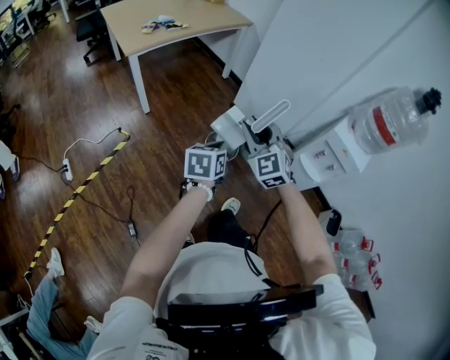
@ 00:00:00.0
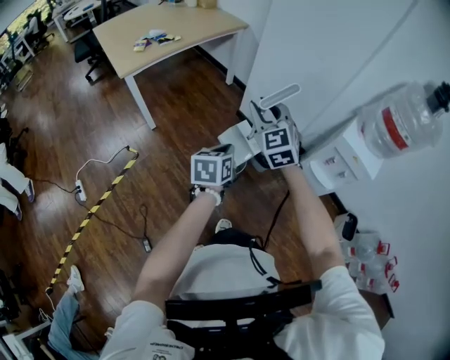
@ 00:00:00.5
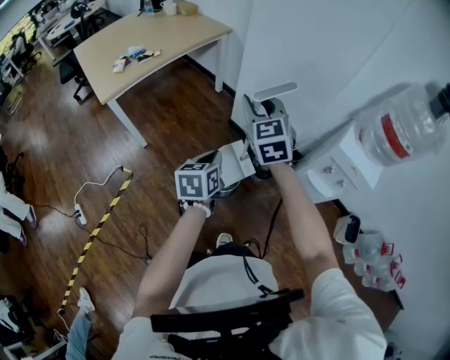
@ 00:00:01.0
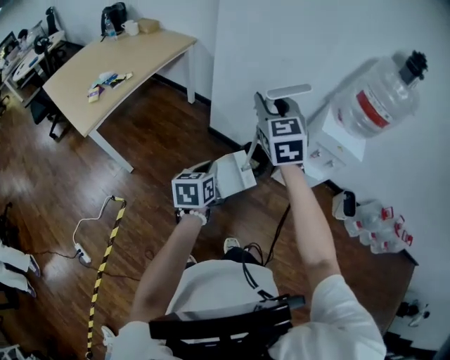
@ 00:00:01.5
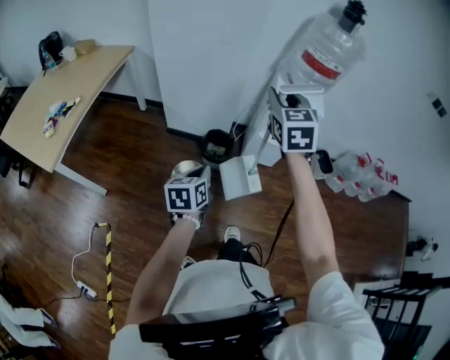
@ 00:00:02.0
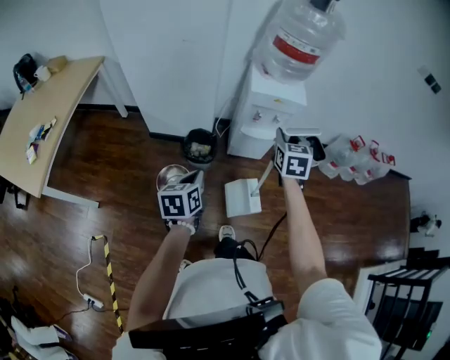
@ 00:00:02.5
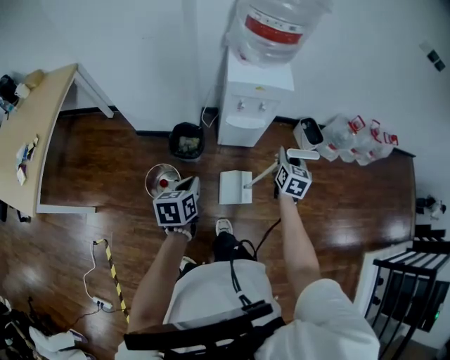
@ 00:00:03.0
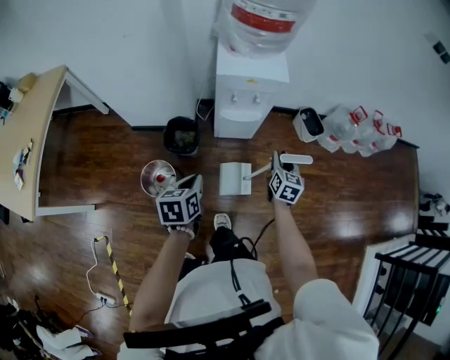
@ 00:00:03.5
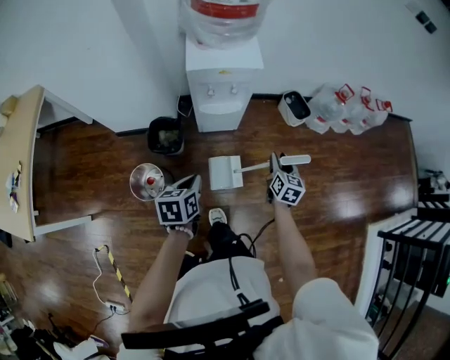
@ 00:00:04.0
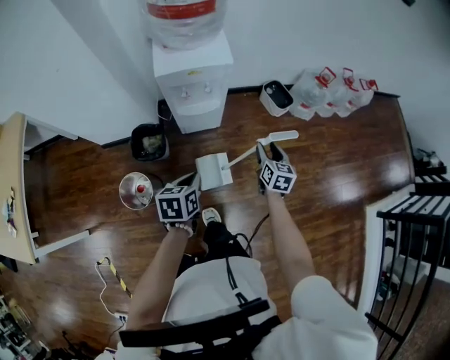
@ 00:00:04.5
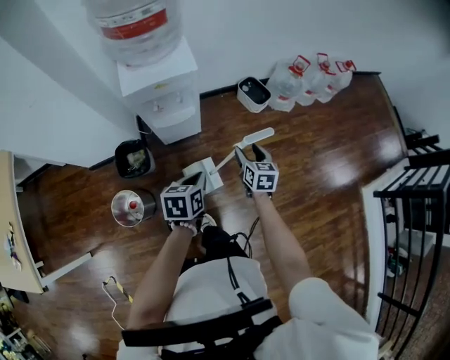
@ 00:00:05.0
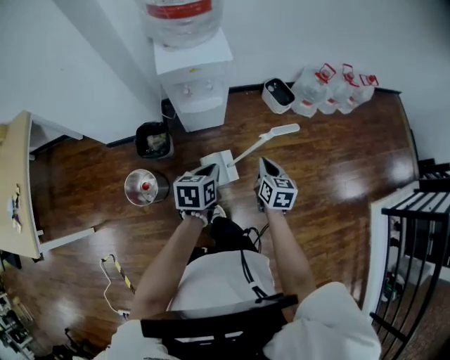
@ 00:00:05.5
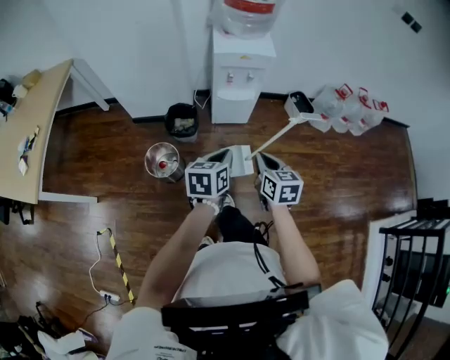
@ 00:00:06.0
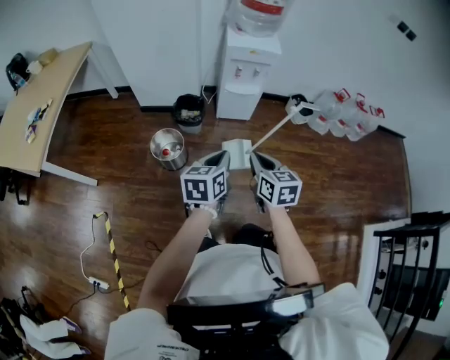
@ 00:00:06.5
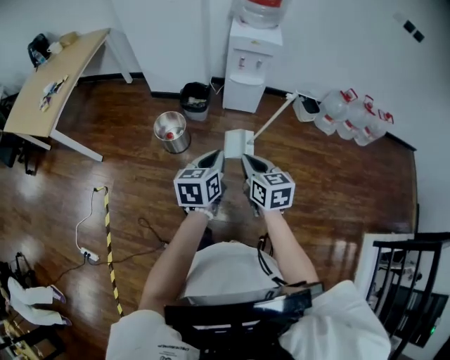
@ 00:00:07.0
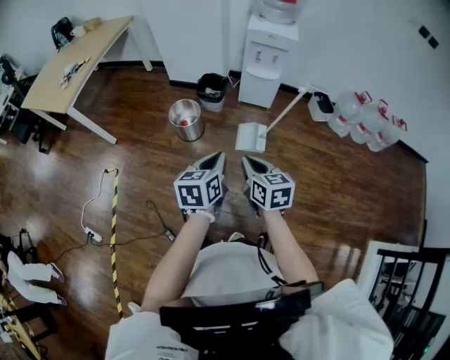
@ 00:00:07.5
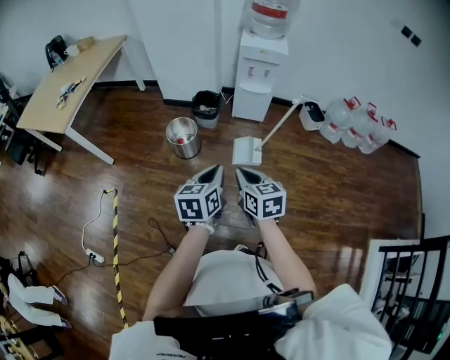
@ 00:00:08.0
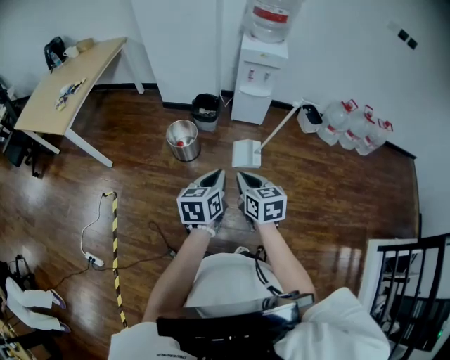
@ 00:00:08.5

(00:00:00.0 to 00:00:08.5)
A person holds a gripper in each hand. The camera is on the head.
00:00:00.0 - 00:00:02.0: The left gripper shifts by approximately 15 cm, and turns by approximately 30 degrees; the right gripper moves about 30 cm, and changes its angle by about 60 degrees.
00:00:02.0 - 00:00:04.0: The right gripper shifts about 60 cm to the right and downward, and twists roughly 40 degrees clockwise, seen from behind. The left gripper goes some 30 cm to the right, forward and downward, and changes its angle by some 20 degrees.
00:00:04.0 - 00:00:06.5: The left gripper shifts by about 25 cm, while the right gripper shifts by about 40 cm, rotates approximately 30 degrees, and closes up.
00:00:06.5 - 00:00:08.5: Both grippers move backward, approximately 20 cm.

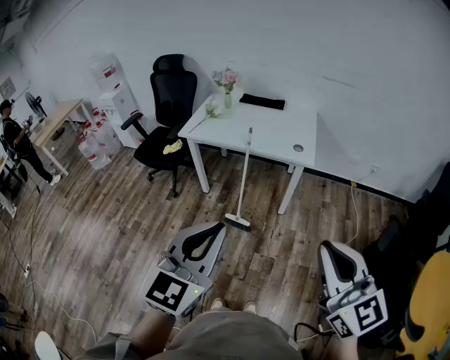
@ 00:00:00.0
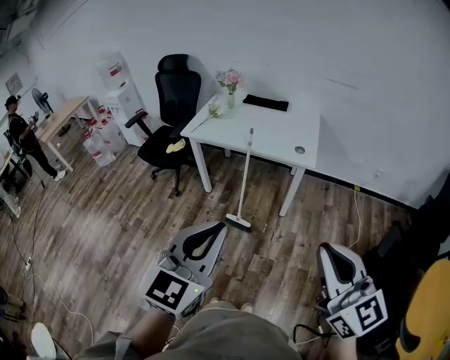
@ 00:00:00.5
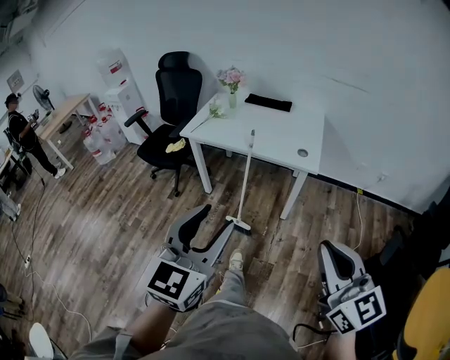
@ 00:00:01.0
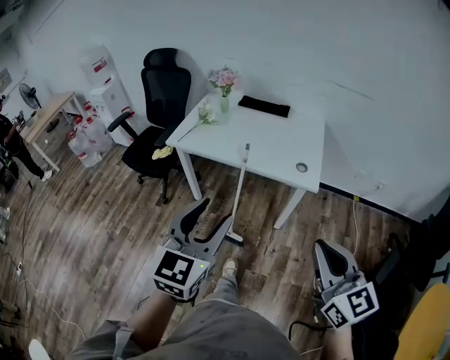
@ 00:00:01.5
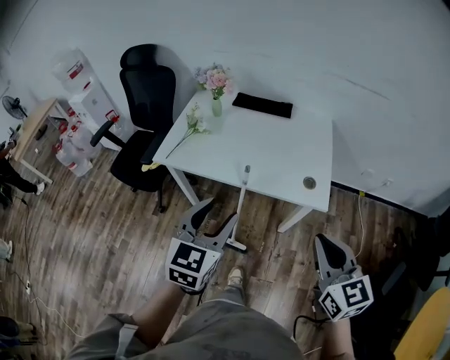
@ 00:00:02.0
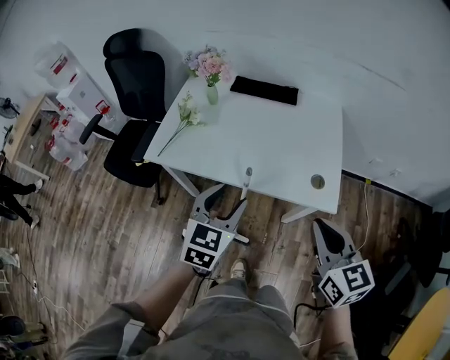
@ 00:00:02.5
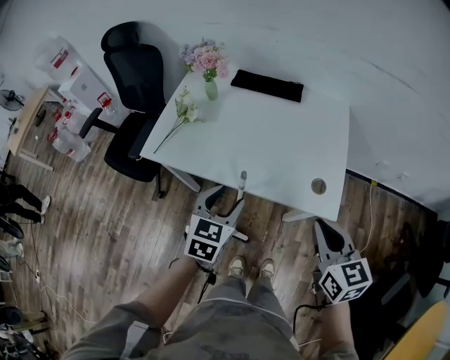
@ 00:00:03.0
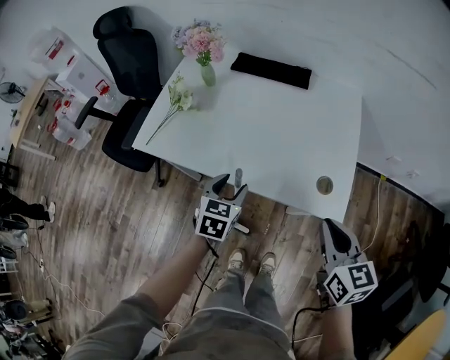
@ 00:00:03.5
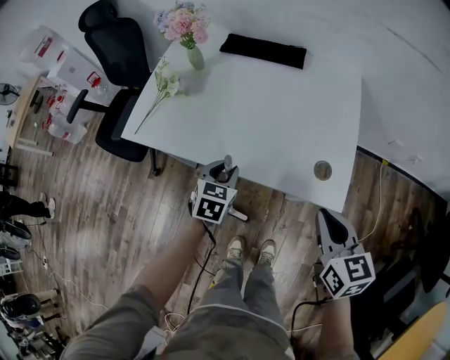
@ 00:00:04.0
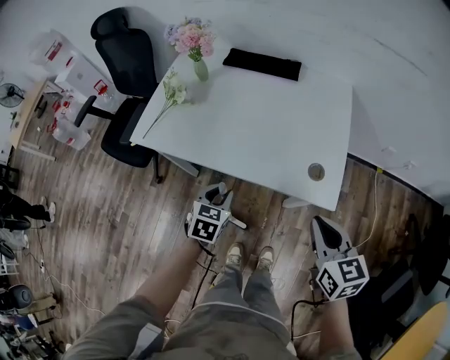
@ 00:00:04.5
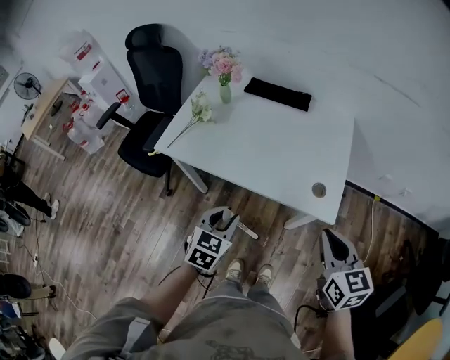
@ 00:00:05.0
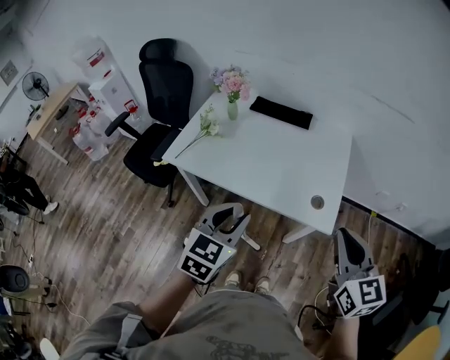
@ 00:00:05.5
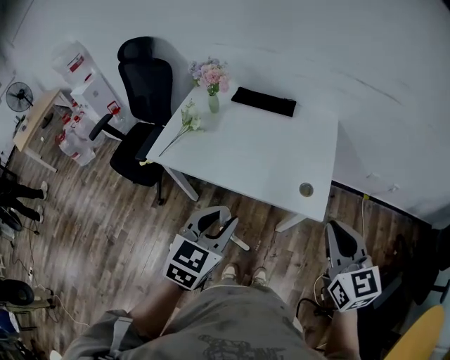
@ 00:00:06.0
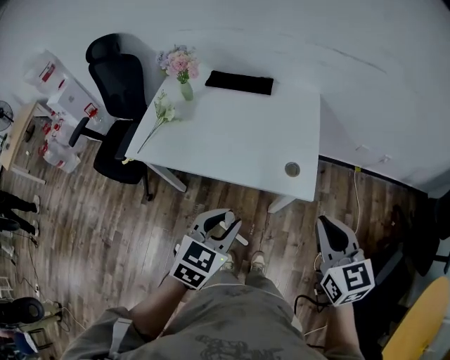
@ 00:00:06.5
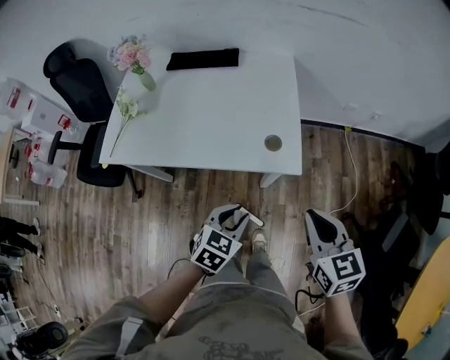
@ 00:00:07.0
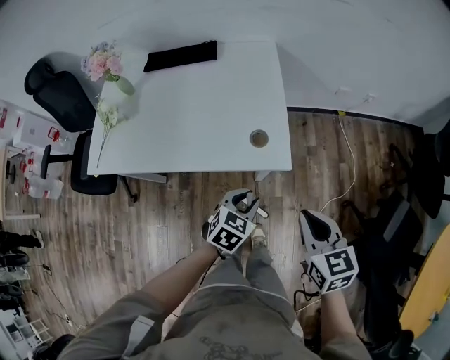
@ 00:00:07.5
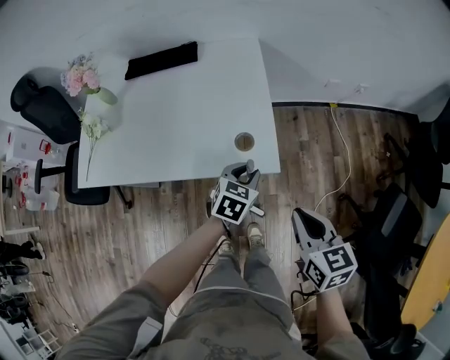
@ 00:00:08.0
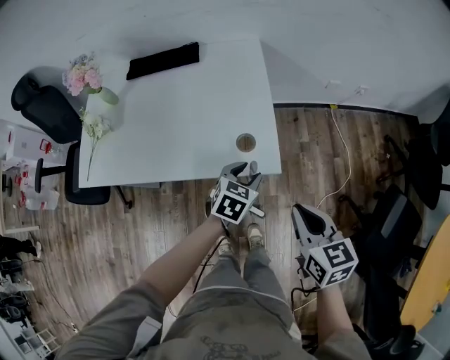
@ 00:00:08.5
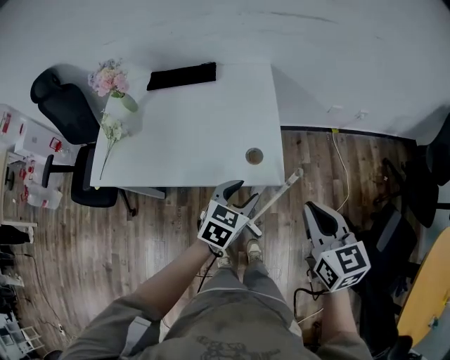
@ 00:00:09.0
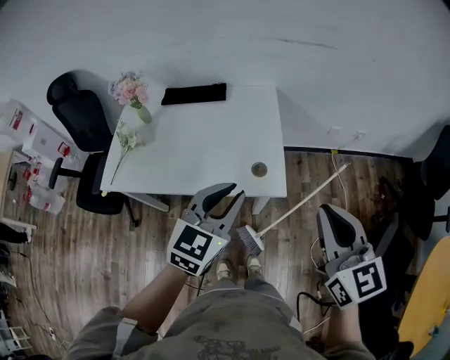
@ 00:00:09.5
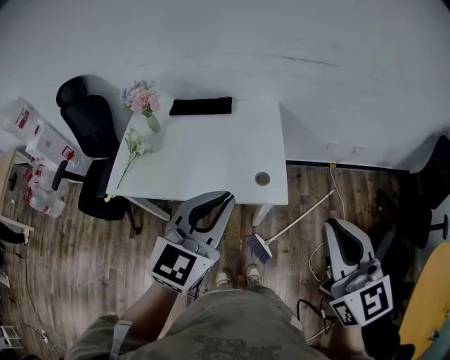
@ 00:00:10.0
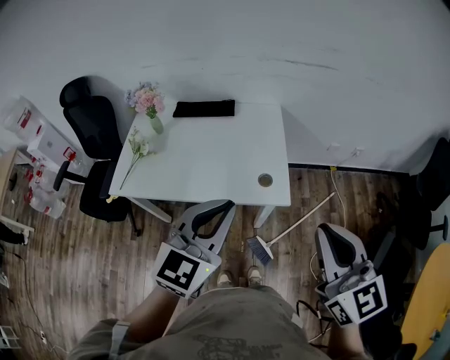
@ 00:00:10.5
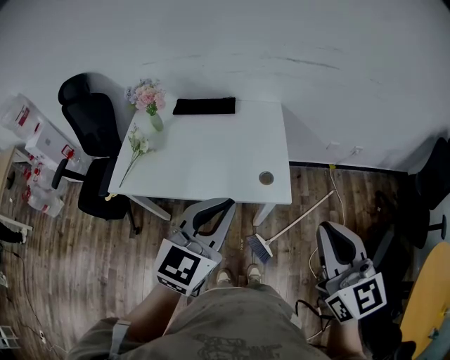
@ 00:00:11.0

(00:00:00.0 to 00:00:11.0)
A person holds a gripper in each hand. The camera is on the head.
00:00:00.0 - 00:00:02.0: Both grippers are carried forward, some 40 cm. The left gripper opens up.
00:00:02.0 - 00:00:03.5: The right gripper is displaced forward and downward by approximately 25 cm, while the left gripper travels downward and forward by some 30 cm, and rotates approximately 20 degrees.
00:00:03.5 - 00:00:05.5: The right gripper heads upward and backward, covering roughly 15 cm. Meanwhile the left gripper travels upward and backward by approximately 25 cm, and closes.
00:00:05.5 - 00:00:07.5: The left gripper is displaced downward and to the right by approximately 30 cm, and rotates some 40 degrees. The right gripper is displaced downward and to the right by about 20 cm, and swivels about 30 degrees.
00:00:07.5 - 00:00:09.0: The left gripper goes approximately 10 cm upward and forward, and opens. The right gripper heads upward, covering roughly 10 cm.
00:00:09.0 - 00:00:11.0: The left gripper shifts some 25 cm upward, swivels about 30 degrees, and closes up; the right gripper moves upward and backward, approximately 20 cm.

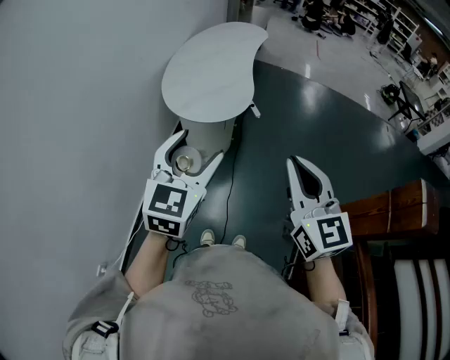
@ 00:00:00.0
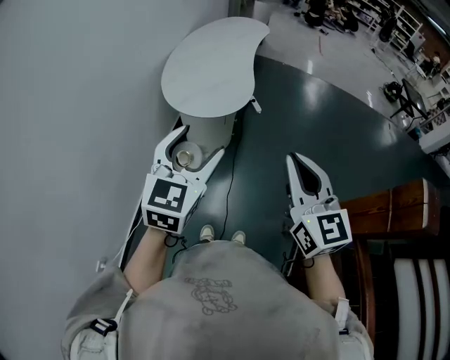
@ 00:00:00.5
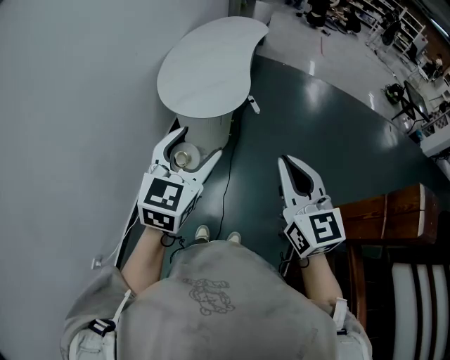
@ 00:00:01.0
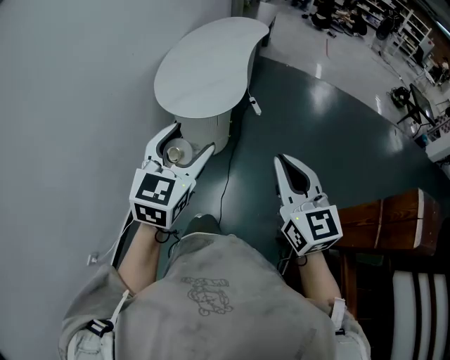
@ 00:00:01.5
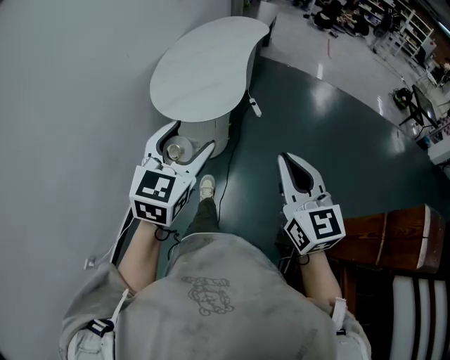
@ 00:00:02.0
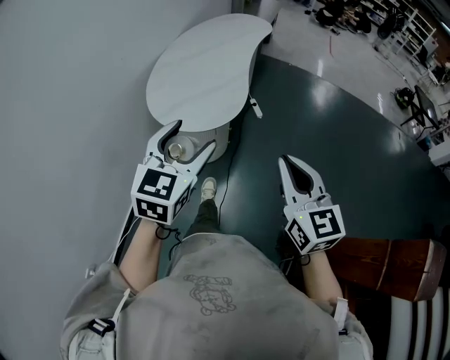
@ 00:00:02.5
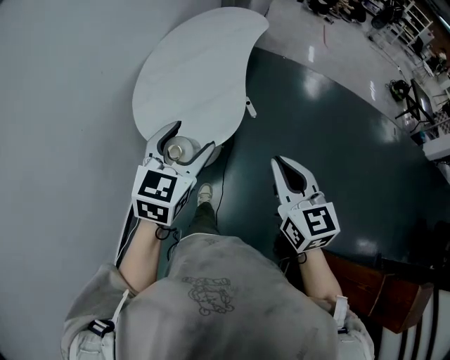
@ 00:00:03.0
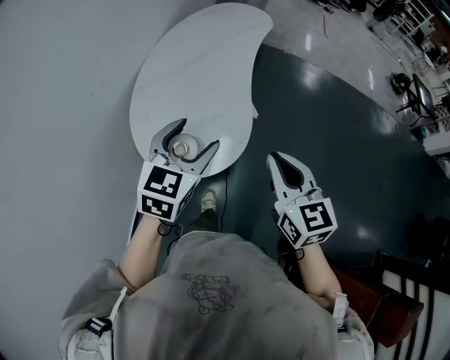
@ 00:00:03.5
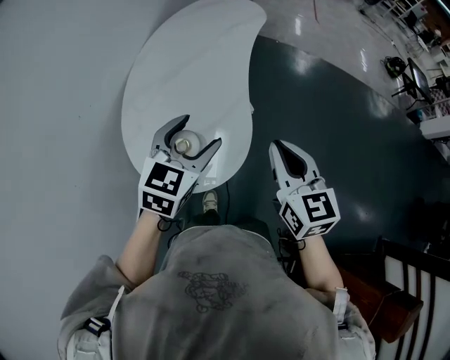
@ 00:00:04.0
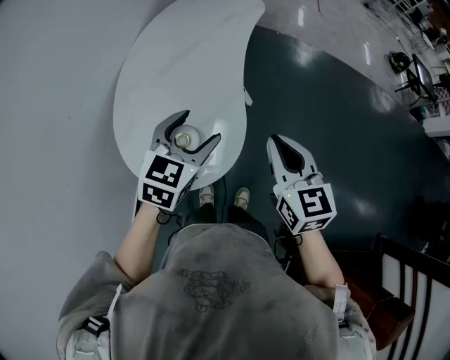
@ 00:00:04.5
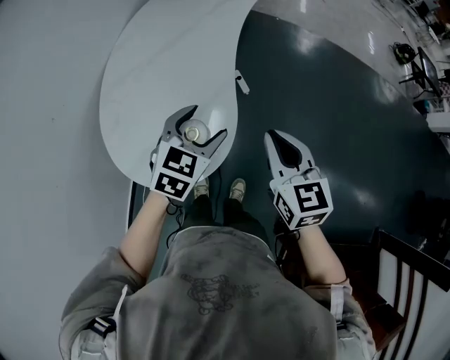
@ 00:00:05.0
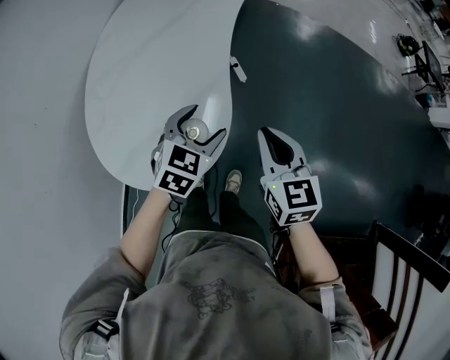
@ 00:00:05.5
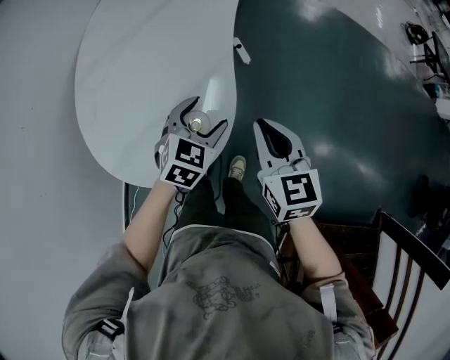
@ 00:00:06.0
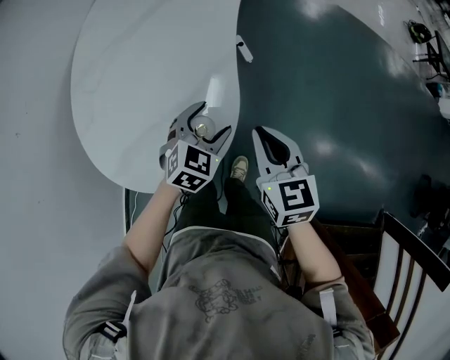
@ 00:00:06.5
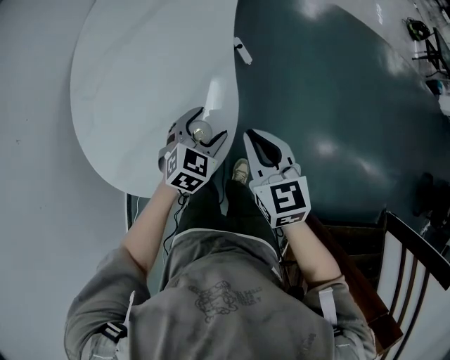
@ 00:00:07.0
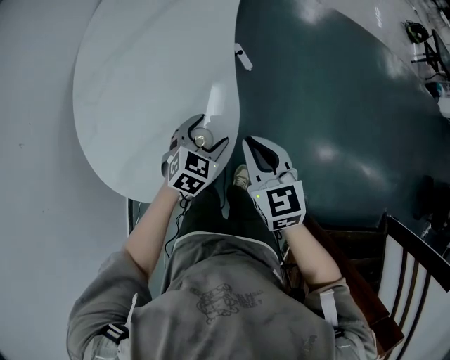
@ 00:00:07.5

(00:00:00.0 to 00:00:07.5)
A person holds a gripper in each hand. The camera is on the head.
00:00:00.0 - 00:00:02.0: The right gripper is displaced to the right, forward and downward by some 15 cm. The left gripper travels to the right and forward by about 10 cm.
00:00:02.0 - 00:00:04.0: The two grippers travel together, forward, some 40 cm.
00:00:04.0 - 00:00:05.5: The left gripper moves downward, to the right and forward, approximately 20 cm. Meanwhile the right gripper heads downward, forward and to the right, covering about 15 cm.
00:00:05.5 - 00:00:07.5: Both grippers move downward, some 15 cm.
